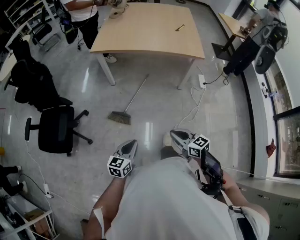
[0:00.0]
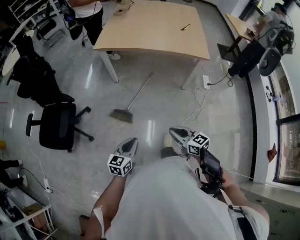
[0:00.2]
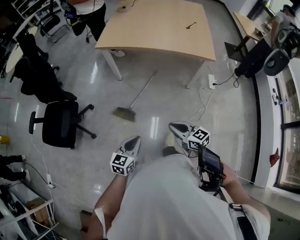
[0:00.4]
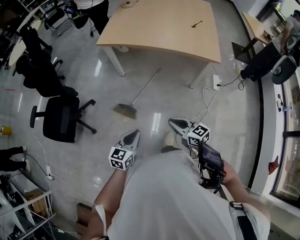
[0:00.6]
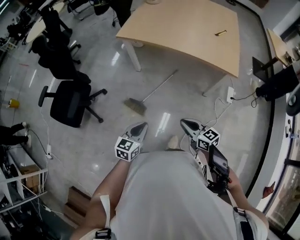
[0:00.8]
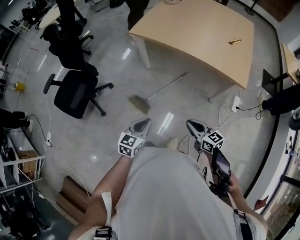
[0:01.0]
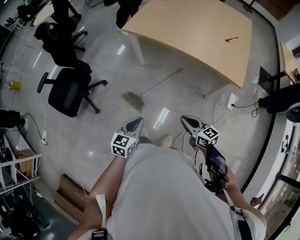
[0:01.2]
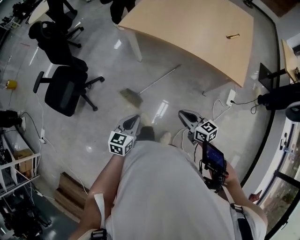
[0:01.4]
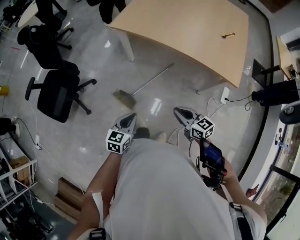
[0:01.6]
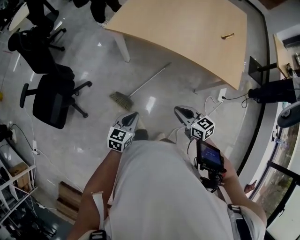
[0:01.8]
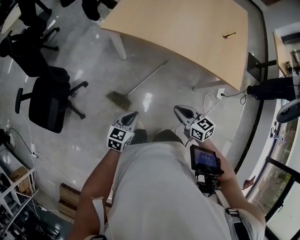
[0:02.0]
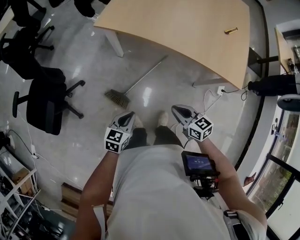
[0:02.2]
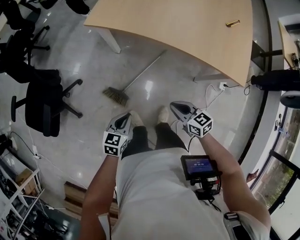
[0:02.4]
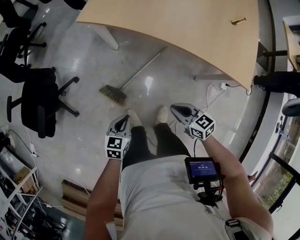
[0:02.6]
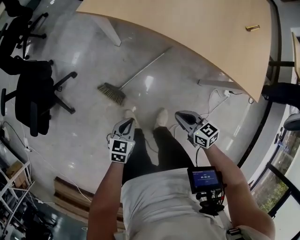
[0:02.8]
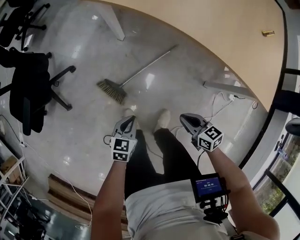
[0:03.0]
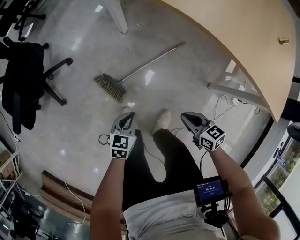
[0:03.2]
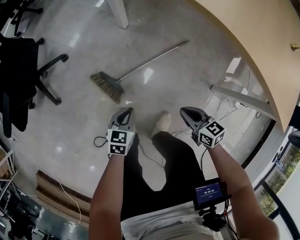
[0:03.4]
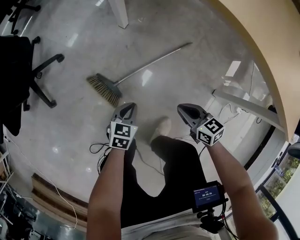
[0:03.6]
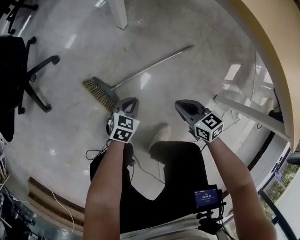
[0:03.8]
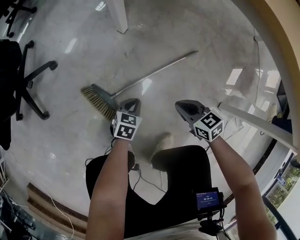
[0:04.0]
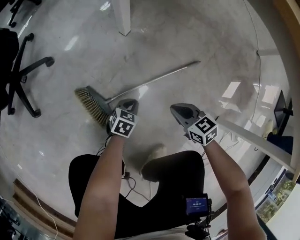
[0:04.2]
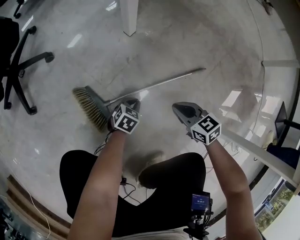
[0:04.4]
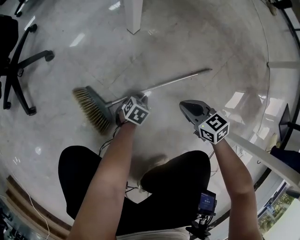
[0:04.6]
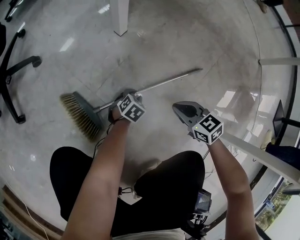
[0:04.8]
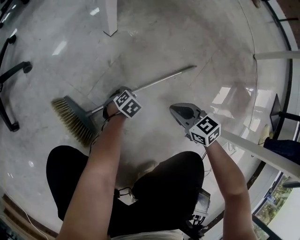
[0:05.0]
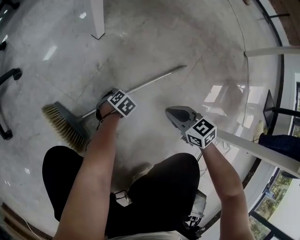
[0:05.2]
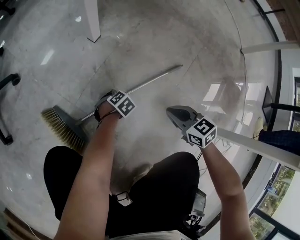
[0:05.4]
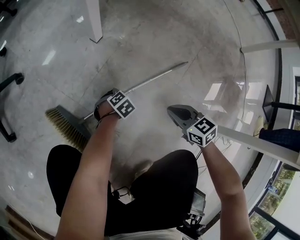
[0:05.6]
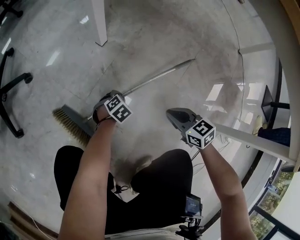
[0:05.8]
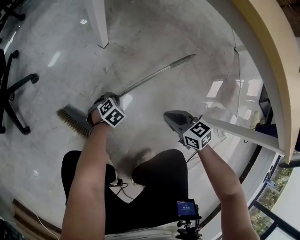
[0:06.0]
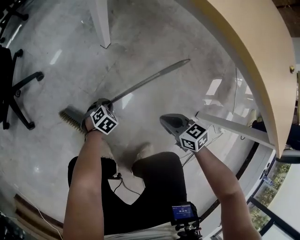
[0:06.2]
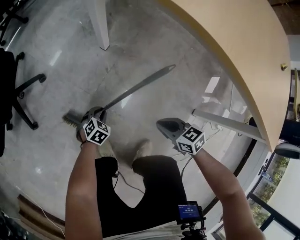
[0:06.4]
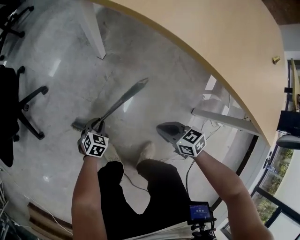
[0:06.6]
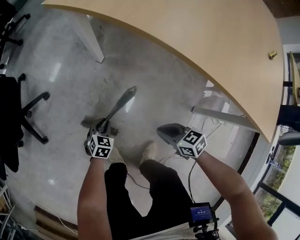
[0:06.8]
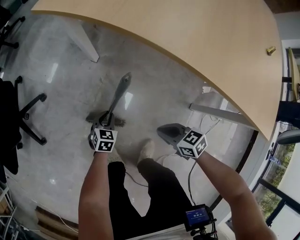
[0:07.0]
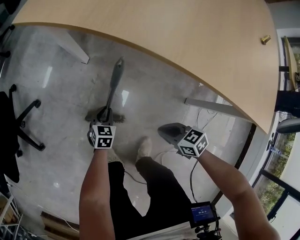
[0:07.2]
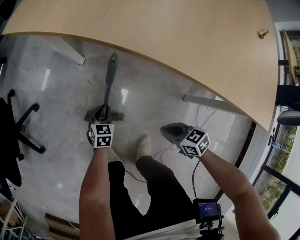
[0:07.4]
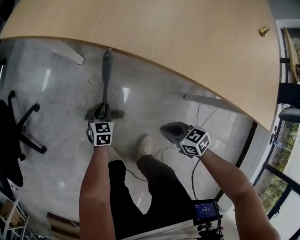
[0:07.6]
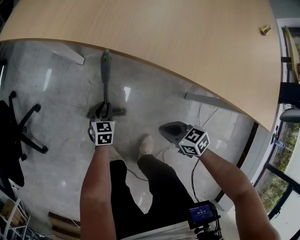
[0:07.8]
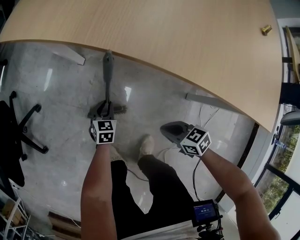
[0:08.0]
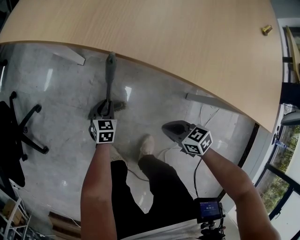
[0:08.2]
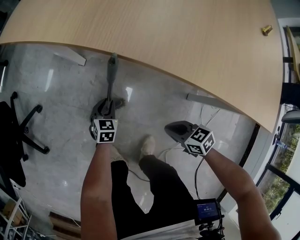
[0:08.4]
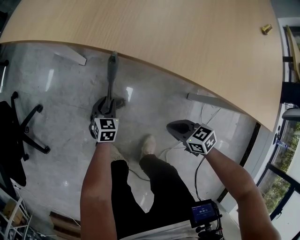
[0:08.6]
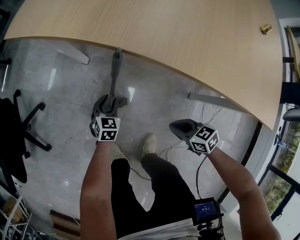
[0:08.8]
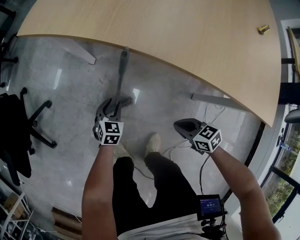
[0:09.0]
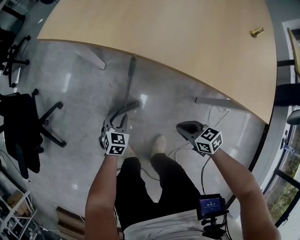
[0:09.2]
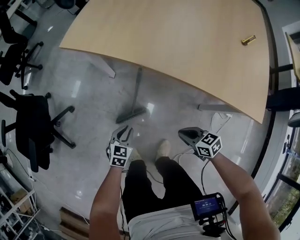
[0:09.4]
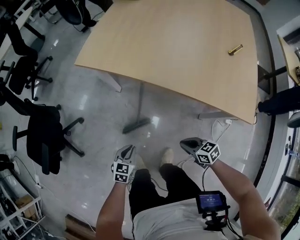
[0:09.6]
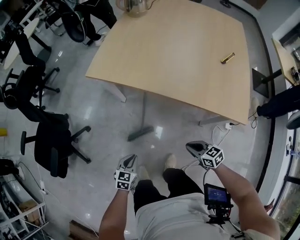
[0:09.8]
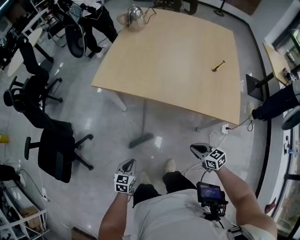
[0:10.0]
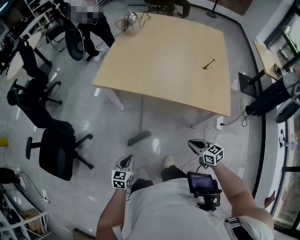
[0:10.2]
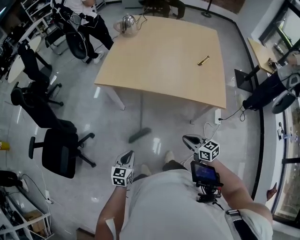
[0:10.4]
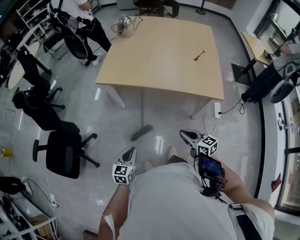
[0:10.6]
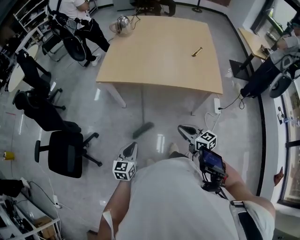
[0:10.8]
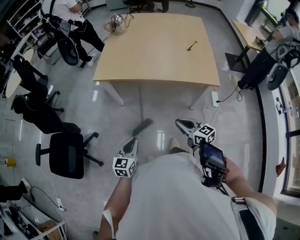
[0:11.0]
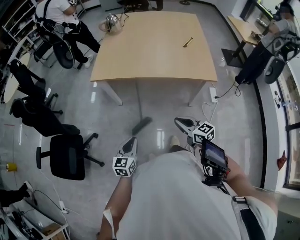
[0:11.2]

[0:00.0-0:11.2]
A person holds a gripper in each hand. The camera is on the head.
0:00.0 to 0:01.6: Both grippers move forward, roughly 25 cm.
0:01.6 to 0:03.2: The two grippers go approximately 30 cm downward.
0:03.2 to 0:04.8: The two grippers go roughly 40 cm downward and forward. The left gripper changes its angle by about 20 degrees, and opens up, while the right gripper rotates some 30 degrees.
0:04.8 to 0:06.4: The two grippers go roughly 20 cm upward.
0:06.4 to 0:08.0: The left gripper shifts some 15 cm to the right and upward, and changes its angle by about 20 degrees. The right gripper is displaced to the right by about 5 cm.
0:08.0 to 0:09.6: The right gripper moves upward, roughly 15 cm; the left gripper travels upward, backward and to the left by approximately 30 cm.
0:09.6 to 0:11.2: Both grippers move upward, approximately 25 cm. The right gripper rotates approximately 40 degrees; the left gripper changes its angle by about 20 degrees.

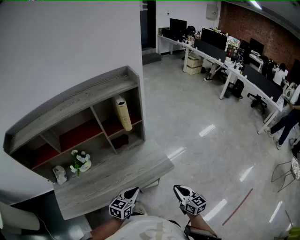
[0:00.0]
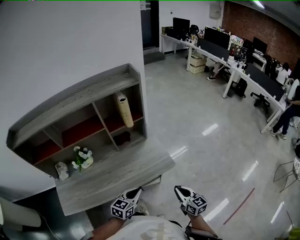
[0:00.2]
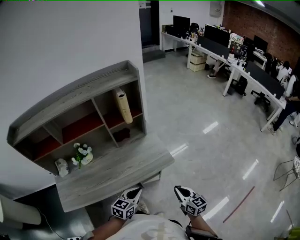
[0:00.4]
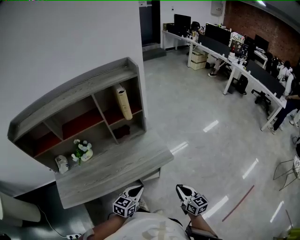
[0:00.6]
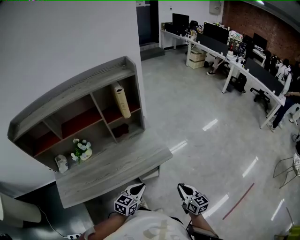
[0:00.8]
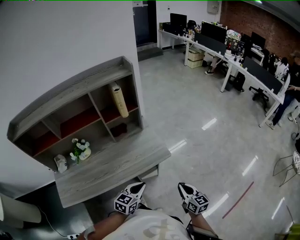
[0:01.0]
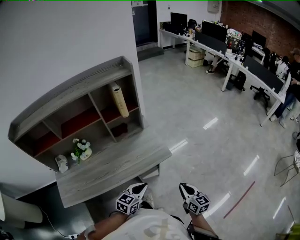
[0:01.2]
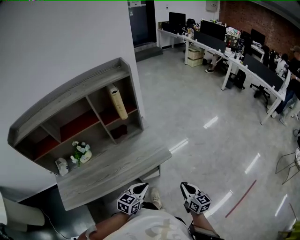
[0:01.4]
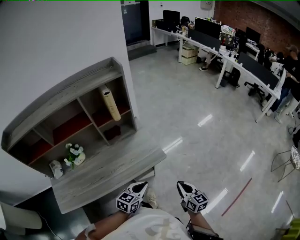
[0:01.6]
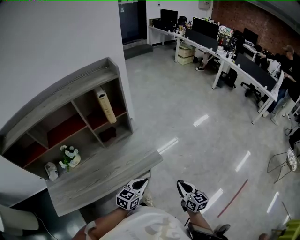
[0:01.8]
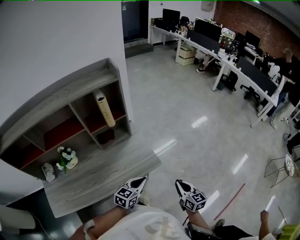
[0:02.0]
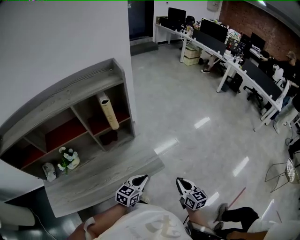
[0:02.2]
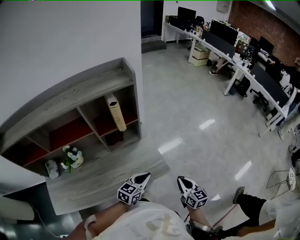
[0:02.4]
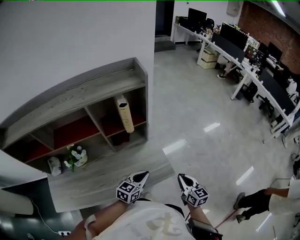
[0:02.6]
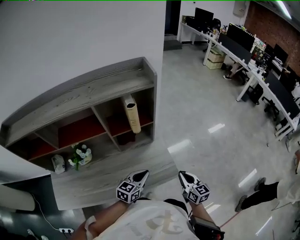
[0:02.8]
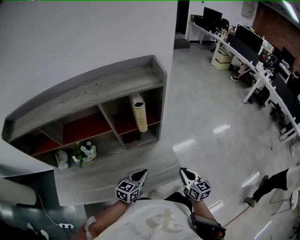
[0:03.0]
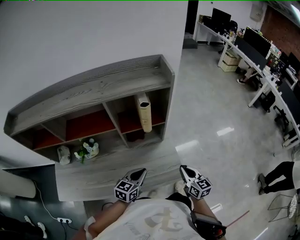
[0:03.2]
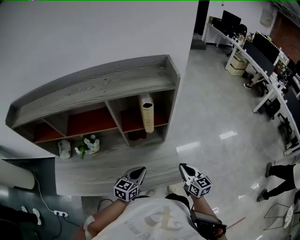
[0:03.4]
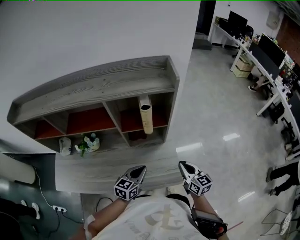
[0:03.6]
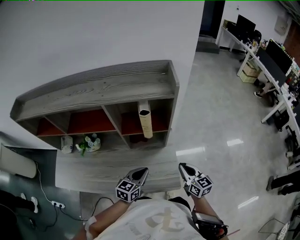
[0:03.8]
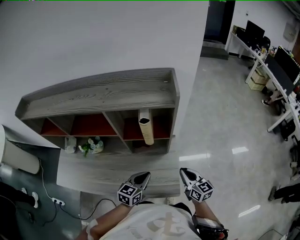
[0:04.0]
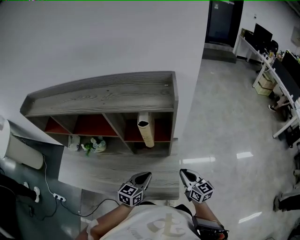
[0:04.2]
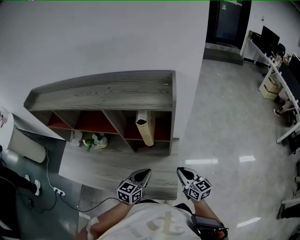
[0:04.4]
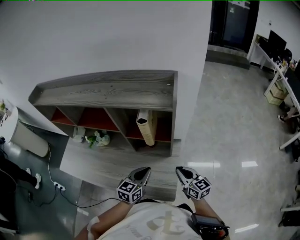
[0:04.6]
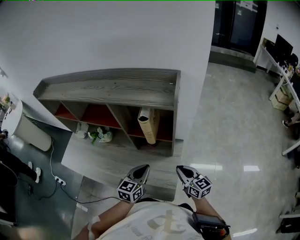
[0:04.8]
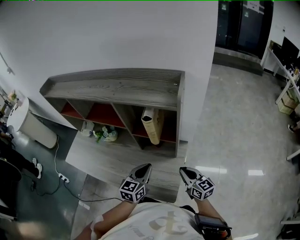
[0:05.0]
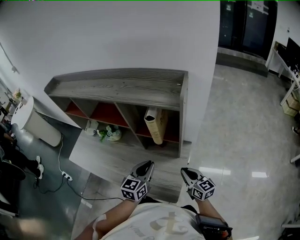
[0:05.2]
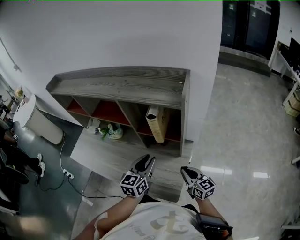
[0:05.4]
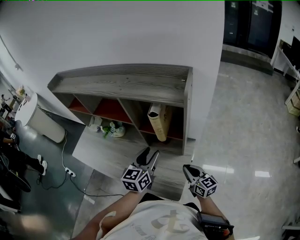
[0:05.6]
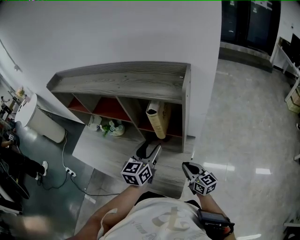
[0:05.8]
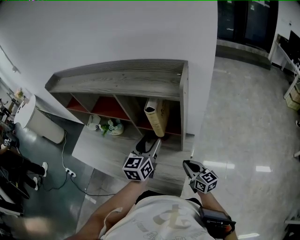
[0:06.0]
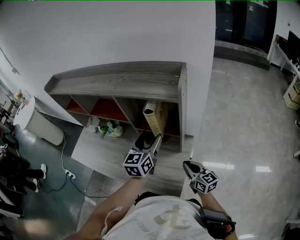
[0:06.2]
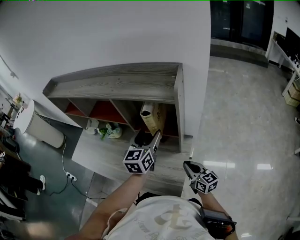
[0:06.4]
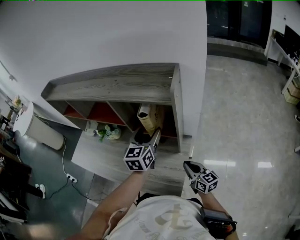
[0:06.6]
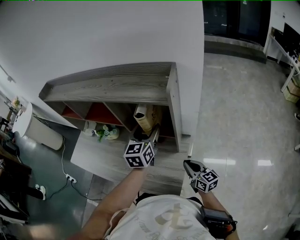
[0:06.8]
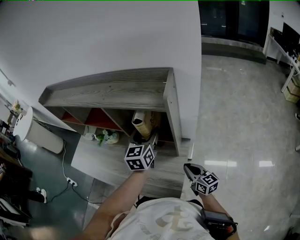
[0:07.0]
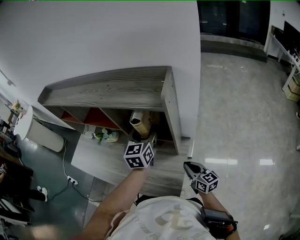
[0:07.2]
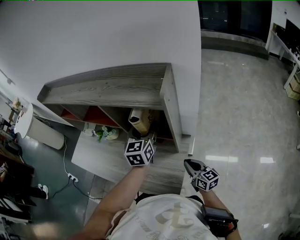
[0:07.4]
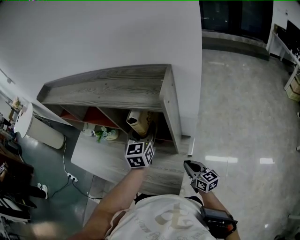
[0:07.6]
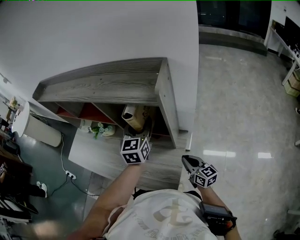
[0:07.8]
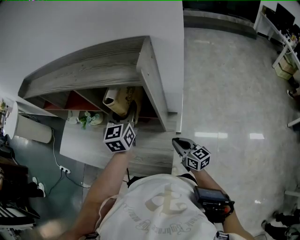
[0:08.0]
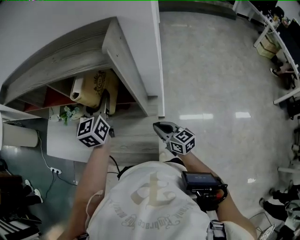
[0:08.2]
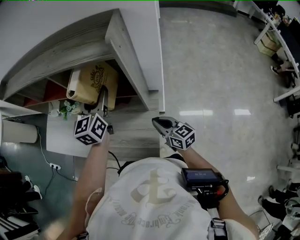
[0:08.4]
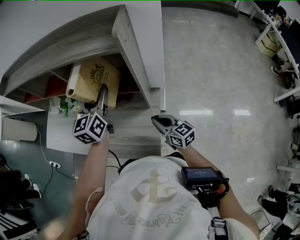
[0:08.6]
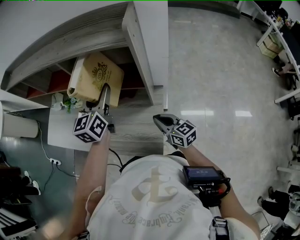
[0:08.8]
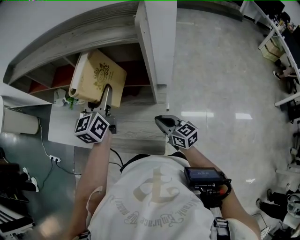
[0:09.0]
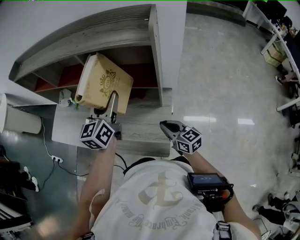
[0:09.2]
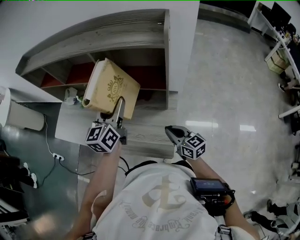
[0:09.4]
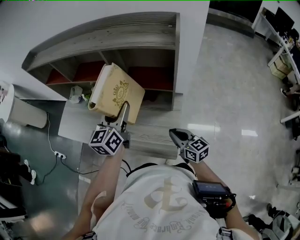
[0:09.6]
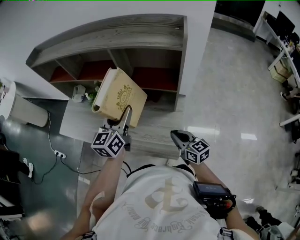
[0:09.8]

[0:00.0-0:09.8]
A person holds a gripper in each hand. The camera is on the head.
0:00.0 to 0:01.4: The two grippers go roughly 10 cm to the right and backward.
0:01.4 to 0:02.8: The right gripper heads forward and to the left, covering about 25 cm. The left gripper moves forward, about 20 cm.
0:02.8 to 0:04.2: The right gripper changes place by roughly 15 cm, and rotates about 30 degrees. The left gripper shifts by about 10 cm, and rotates approximately 30 degrees.
0:04.2 to 0:05.6: The left gripper is displaced upward and forward by some 10 cm, rotates approximately 30 degrees, and opens up.
0:05.6 to 0:07.0: The left gripper shifts approximately 15 cm forward and to the right, and opens up.
0:07.0 to 0:08.4: There are only small adjustments of the grippers.
0:08.4 to 0:09.8: The two grippers go roughly 15 cm to the left and backward.

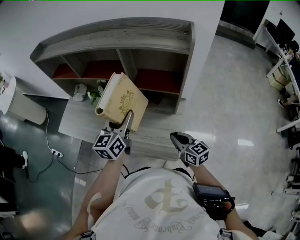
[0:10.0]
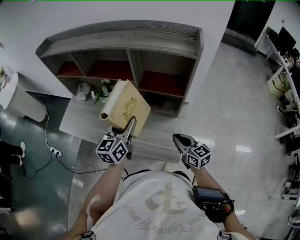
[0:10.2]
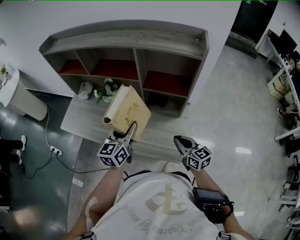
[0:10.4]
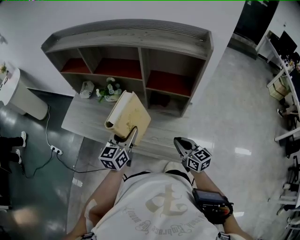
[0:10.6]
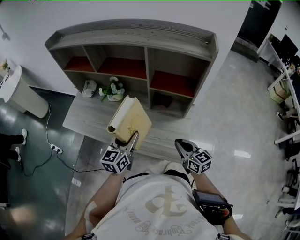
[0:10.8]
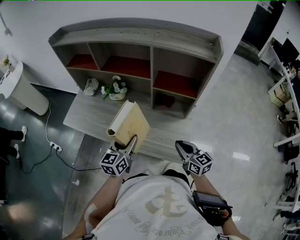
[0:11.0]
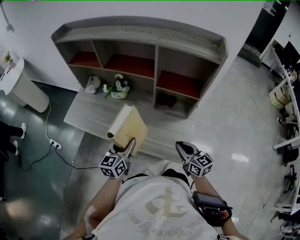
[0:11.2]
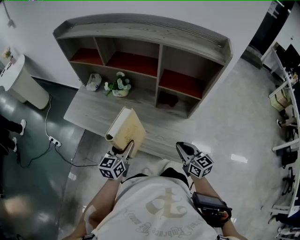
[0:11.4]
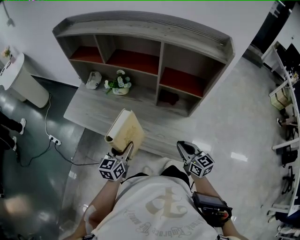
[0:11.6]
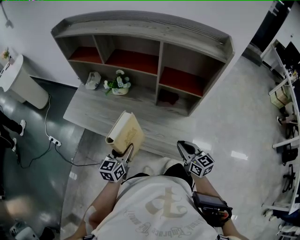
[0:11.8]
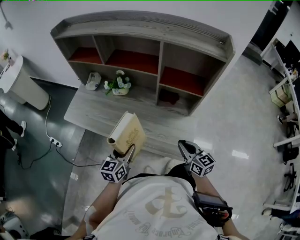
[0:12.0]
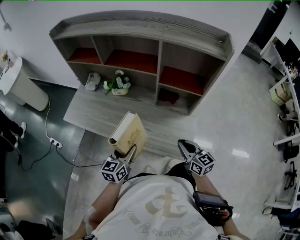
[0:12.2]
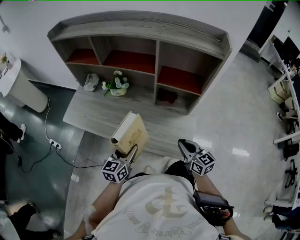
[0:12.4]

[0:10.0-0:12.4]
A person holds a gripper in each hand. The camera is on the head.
0:10.0 to 0:11.2: The right gripper heads to the left, covering about 10 cm, while the left gripper travels to the left, downward and backward by some 20 cm.
0:11.2 to 0:12.4: The grippers move only a little.
